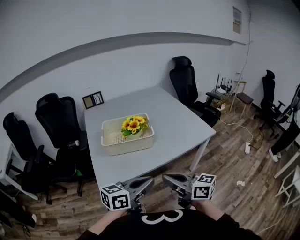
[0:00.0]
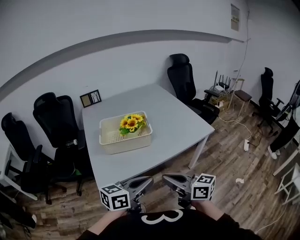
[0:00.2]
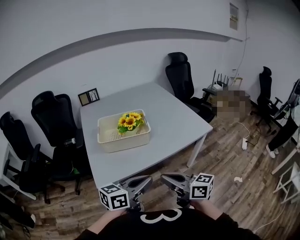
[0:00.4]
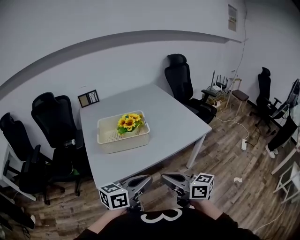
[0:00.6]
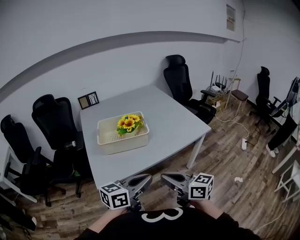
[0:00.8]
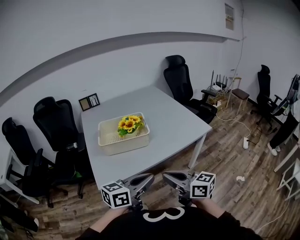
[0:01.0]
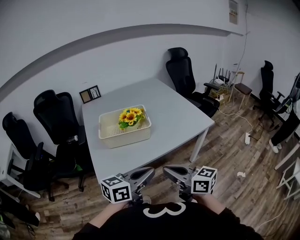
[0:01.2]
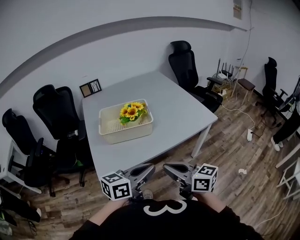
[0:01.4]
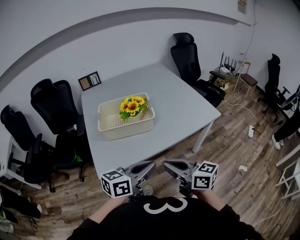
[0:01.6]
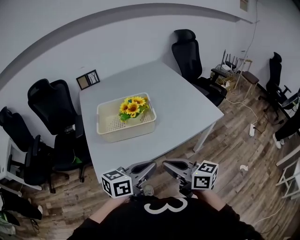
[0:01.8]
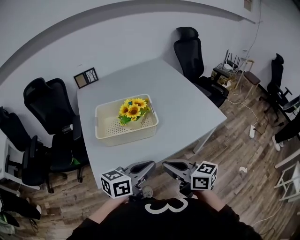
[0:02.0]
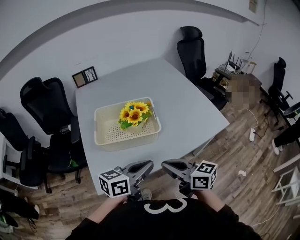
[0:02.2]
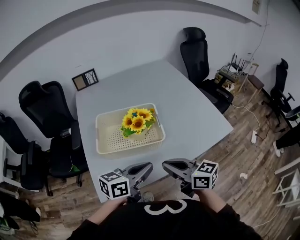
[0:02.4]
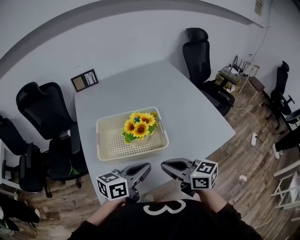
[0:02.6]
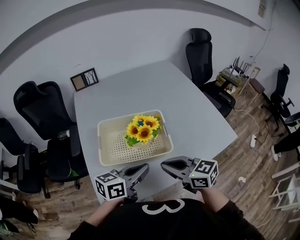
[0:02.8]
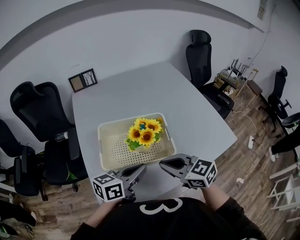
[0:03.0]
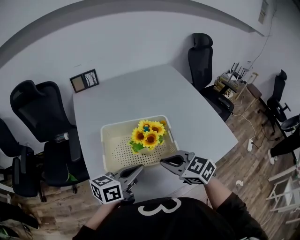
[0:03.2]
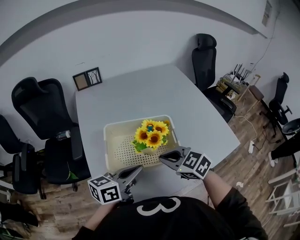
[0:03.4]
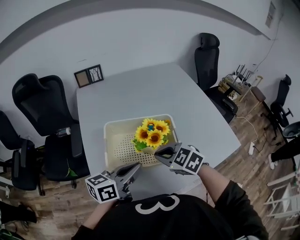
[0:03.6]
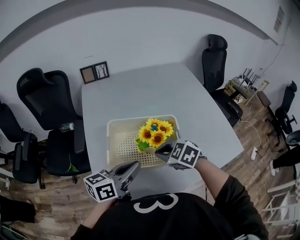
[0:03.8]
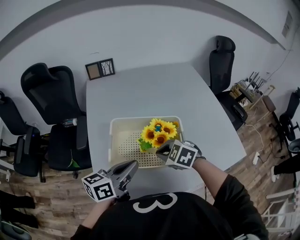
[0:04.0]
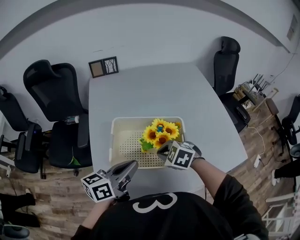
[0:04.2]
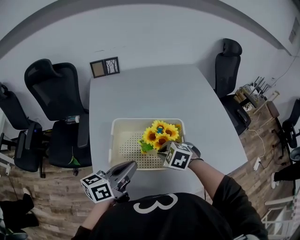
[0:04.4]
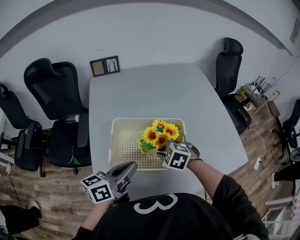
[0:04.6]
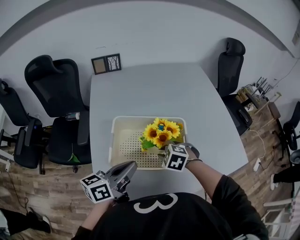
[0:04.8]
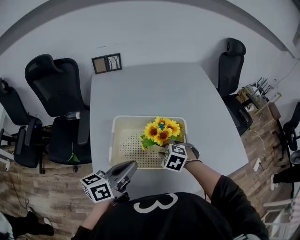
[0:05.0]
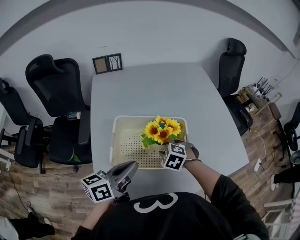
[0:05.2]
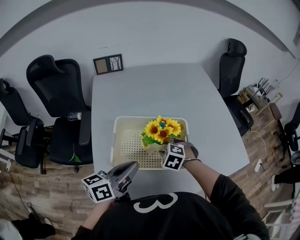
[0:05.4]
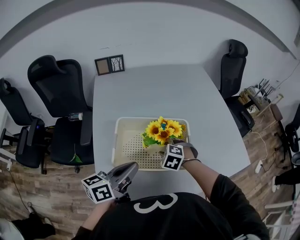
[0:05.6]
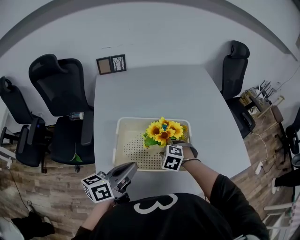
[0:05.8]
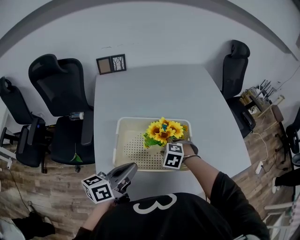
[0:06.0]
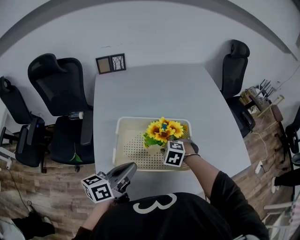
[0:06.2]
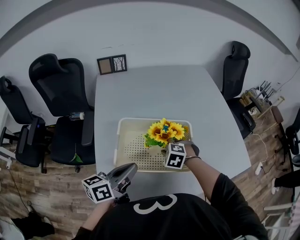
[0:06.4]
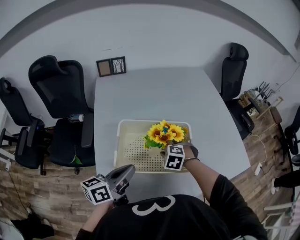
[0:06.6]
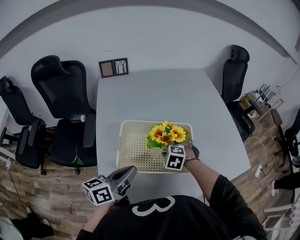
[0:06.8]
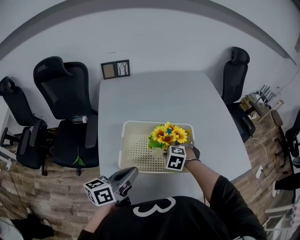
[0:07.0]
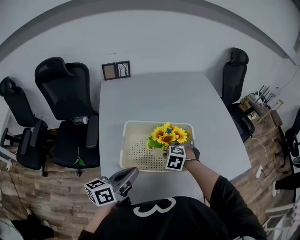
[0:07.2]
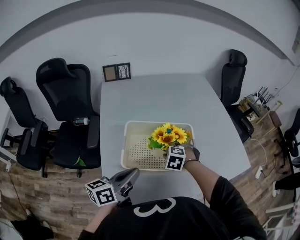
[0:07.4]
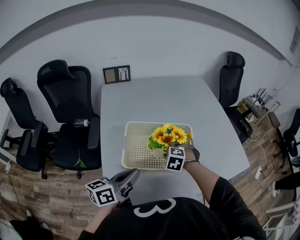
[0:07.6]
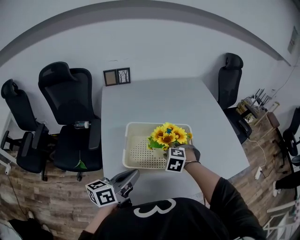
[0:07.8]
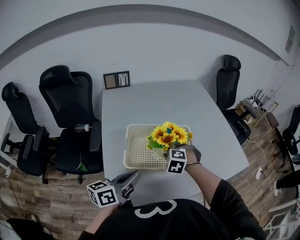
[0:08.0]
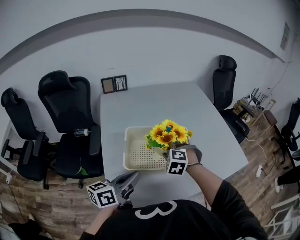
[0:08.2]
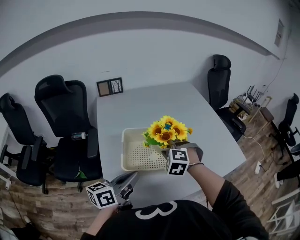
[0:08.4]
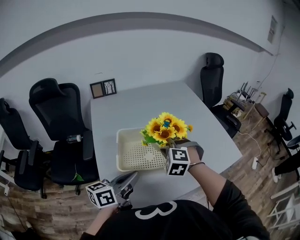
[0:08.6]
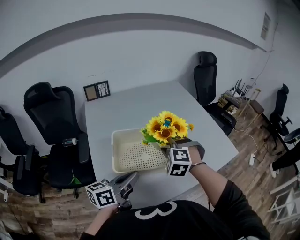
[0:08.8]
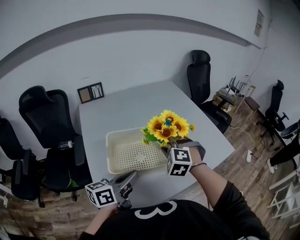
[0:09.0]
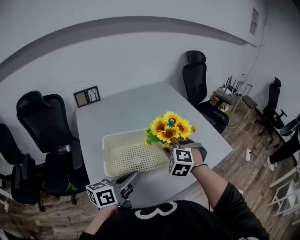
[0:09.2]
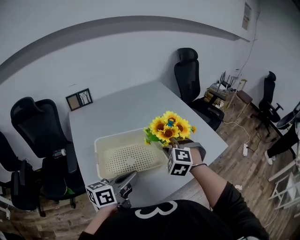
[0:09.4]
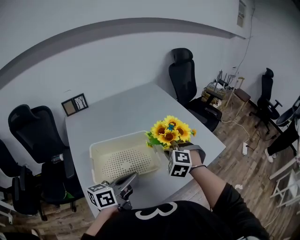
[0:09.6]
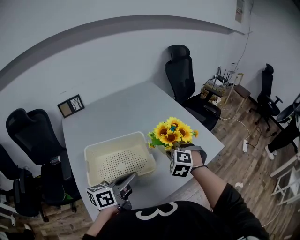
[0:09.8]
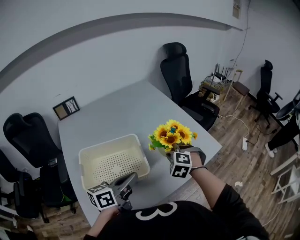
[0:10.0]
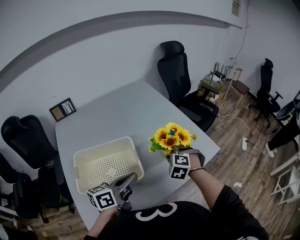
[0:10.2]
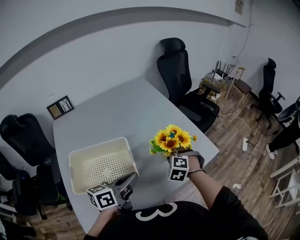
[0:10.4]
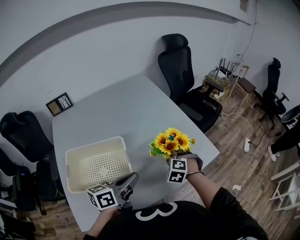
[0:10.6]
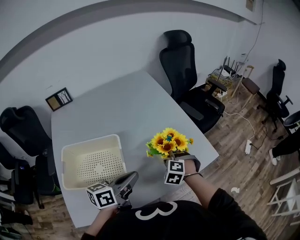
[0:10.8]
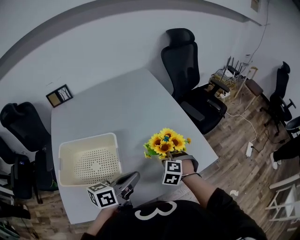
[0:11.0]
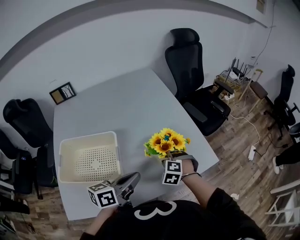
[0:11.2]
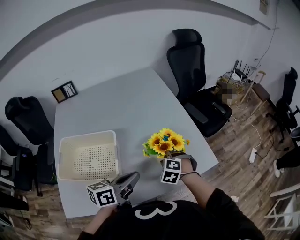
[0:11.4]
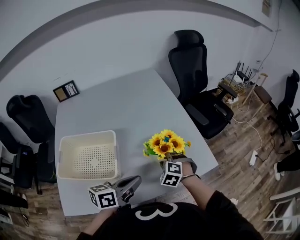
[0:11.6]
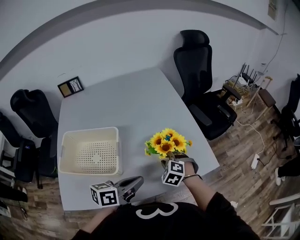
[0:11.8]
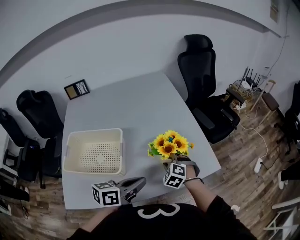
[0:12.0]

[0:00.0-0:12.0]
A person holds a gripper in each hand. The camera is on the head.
0:00.0 to 0:01.6: The grippers make only small movements.
0:01.6 to 0:03.0: The left gripper moves forward and to the left, roughly 25 cm. Meanwhile the right gripper shifts some 25 cm forward, and changes its angle by about 30 degrees.
0:03.0 to 0:04.4: The right gripper heads downward and forward, covering some 15 cm, and angles its fingers downward, by about 40 degrees. Meanwhile the left gripper moves to the left, roughly 5 cm.
0:04.4 to 0:06.0: The right gripper goes some 5 cm downward, and opens.
0:06.0 to 0:07.6: The grippers make only small movements.
0:07.6 to 0:09.0: The left gripper goes some 5 cm to the right. Meanwhile the right gripper goes some 15 cm upward and to the right, and changes its angle by roughly 20 degrees.
0:09.0 to 0:10.4: The left gripper goes about 20 cm to the right and forward, while the right gripper moves to the right, forward and downward, about 25 cm.
0:10.4 to 0:12.0: The right gripper shifts some 5 cm downward, while the left gripper is displaced to the right by approximately 10 cm.

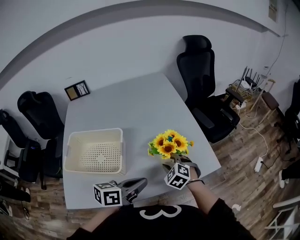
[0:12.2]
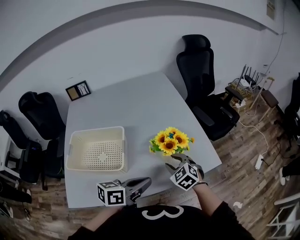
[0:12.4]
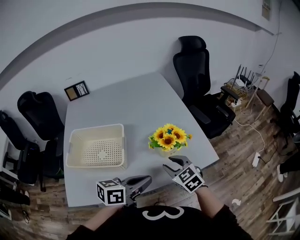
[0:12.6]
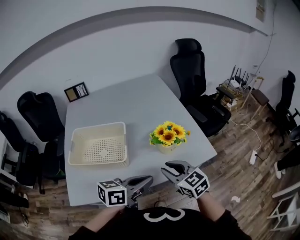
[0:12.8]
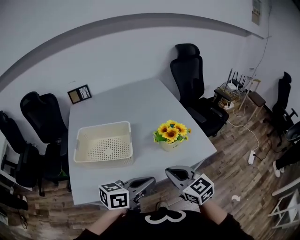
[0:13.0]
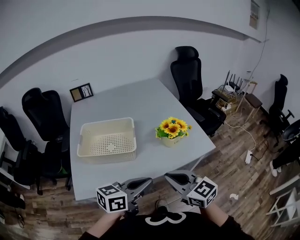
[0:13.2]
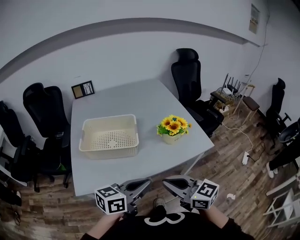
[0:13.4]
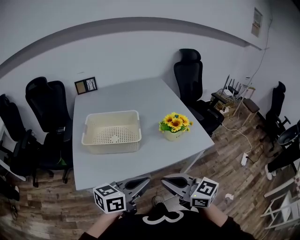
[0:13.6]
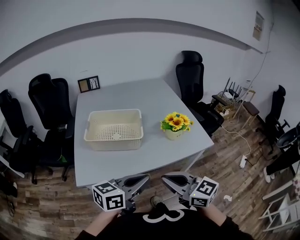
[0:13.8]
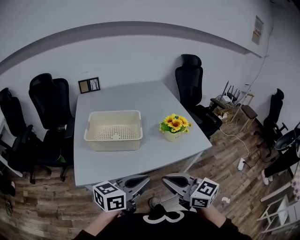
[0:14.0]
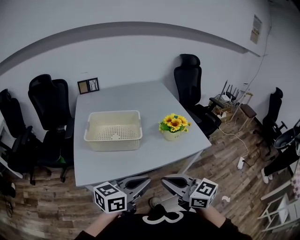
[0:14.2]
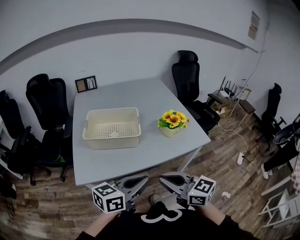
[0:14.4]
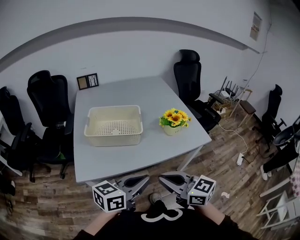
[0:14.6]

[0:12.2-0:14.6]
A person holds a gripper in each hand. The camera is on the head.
0:12.2 to 0:13.4: The left gripper shifts roughly 20 cm backward, while the right gripper heads backward and upward, covering roughly 35 cm, angles its fingers upward, by some 40 degrees, and closes.
0:13.4 to 0:14.6: The grippers both shift backward by about 5 cm.

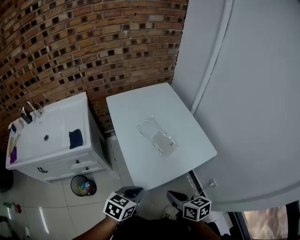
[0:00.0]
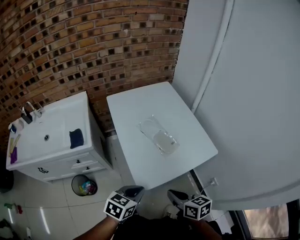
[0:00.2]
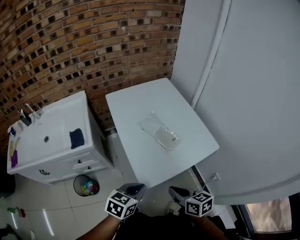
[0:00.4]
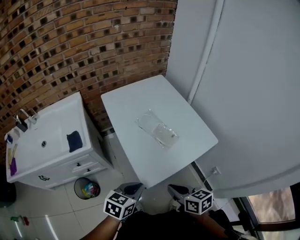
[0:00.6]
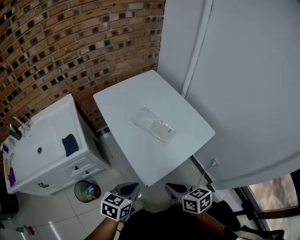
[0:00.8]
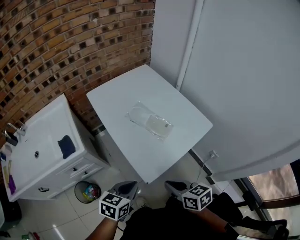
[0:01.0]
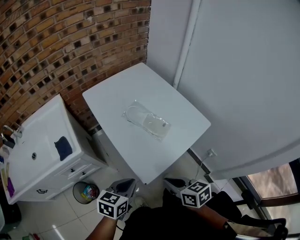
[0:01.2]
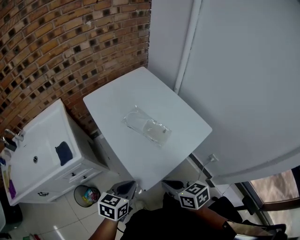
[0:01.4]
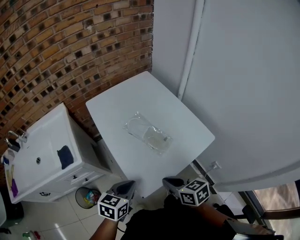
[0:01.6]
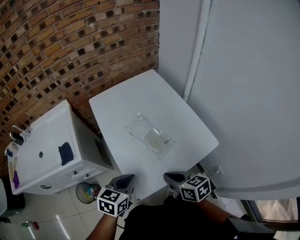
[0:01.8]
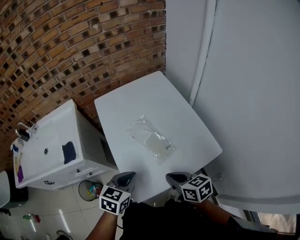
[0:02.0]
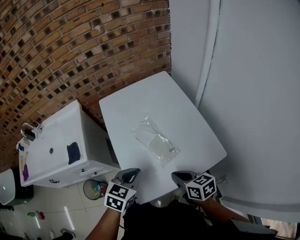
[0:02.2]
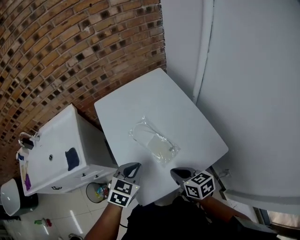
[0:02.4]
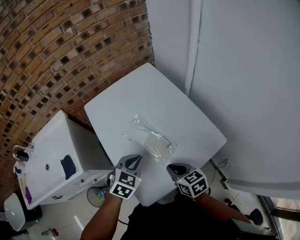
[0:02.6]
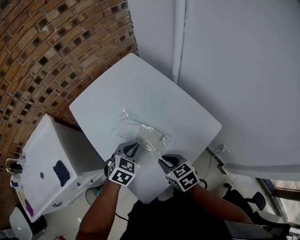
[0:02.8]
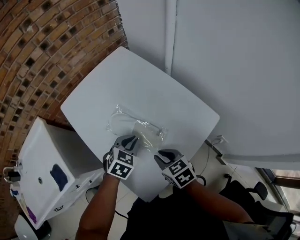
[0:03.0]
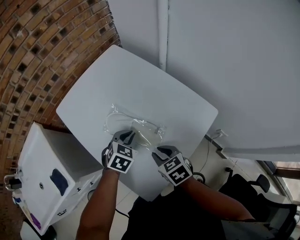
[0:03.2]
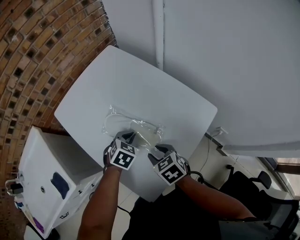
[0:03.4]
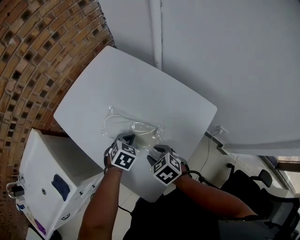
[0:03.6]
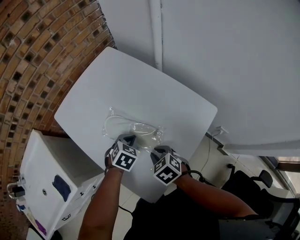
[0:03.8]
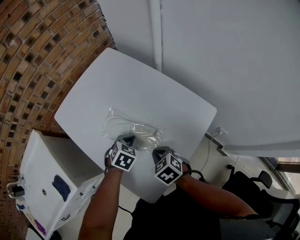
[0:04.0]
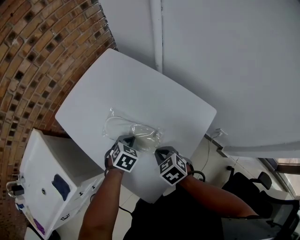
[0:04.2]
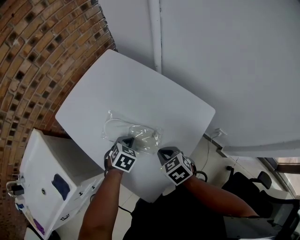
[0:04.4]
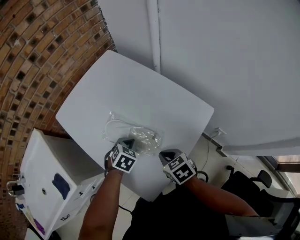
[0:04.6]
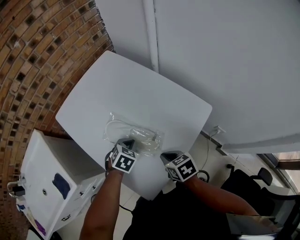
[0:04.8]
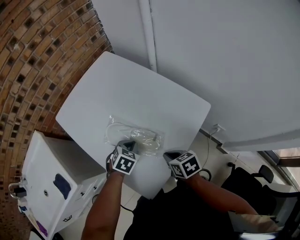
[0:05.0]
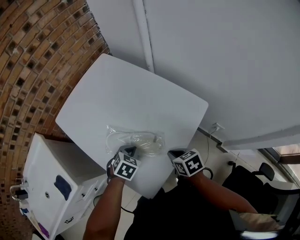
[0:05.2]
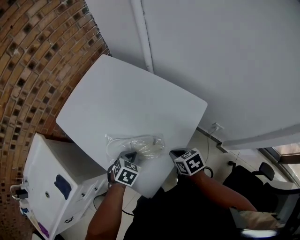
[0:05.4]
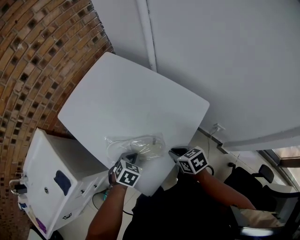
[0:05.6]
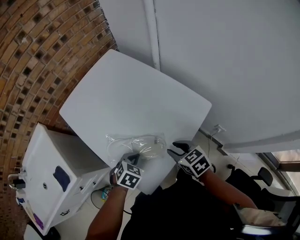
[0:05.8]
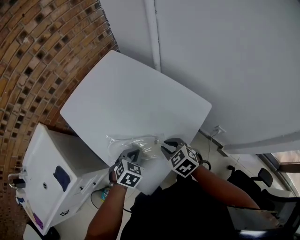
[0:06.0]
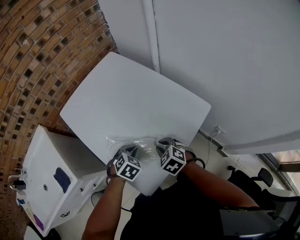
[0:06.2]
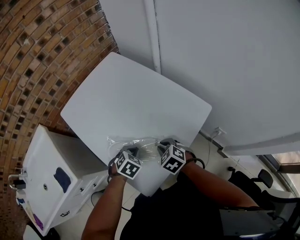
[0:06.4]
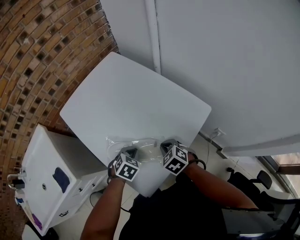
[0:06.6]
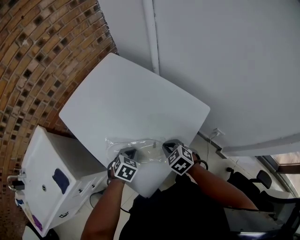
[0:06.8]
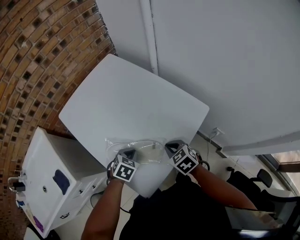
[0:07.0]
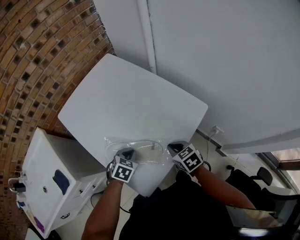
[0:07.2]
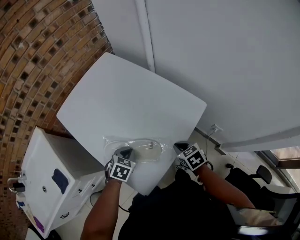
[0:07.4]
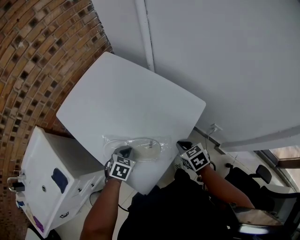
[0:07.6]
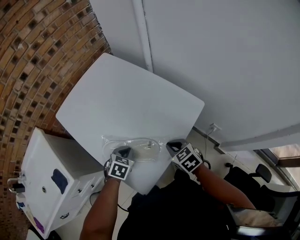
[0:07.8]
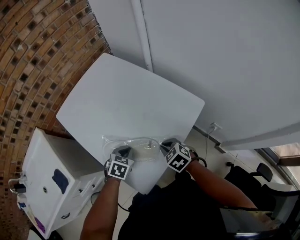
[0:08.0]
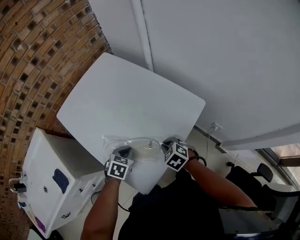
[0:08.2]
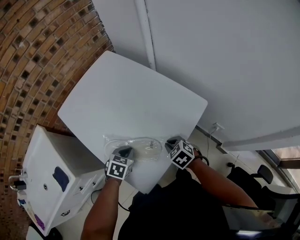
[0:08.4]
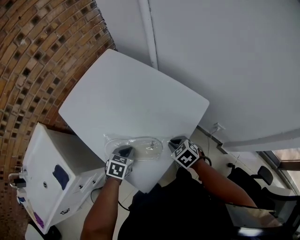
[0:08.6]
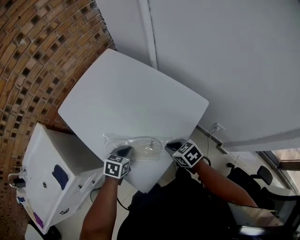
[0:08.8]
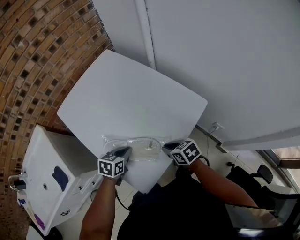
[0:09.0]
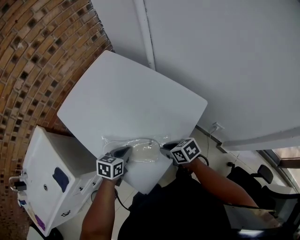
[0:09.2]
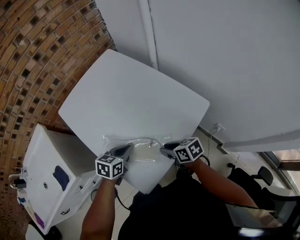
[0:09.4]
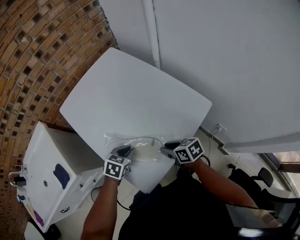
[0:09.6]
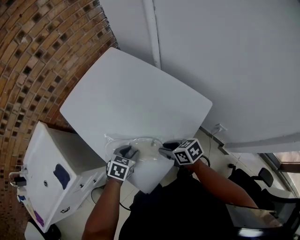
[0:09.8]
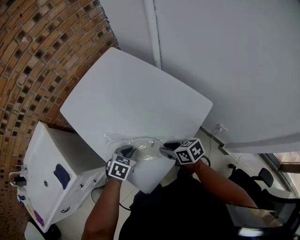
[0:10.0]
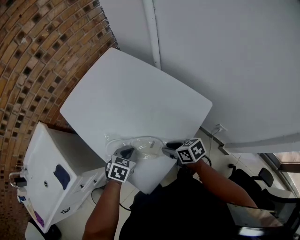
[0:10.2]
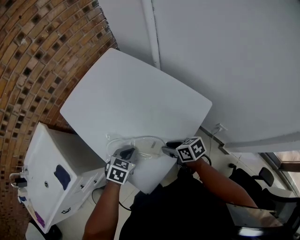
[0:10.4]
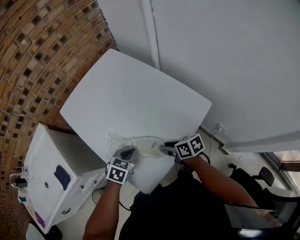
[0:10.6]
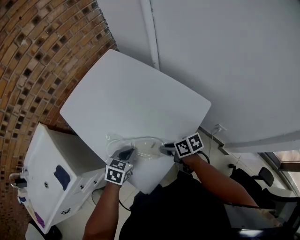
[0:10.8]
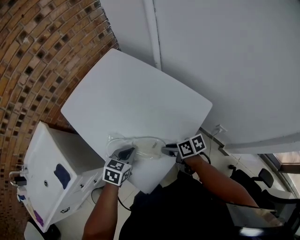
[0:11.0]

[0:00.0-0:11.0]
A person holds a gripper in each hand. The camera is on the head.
0:00.0 to 0:01.6: The two grippers go approximately 10 cm forward.
0:01.6 to 0:03.2: The left gripper goes some 30 cm forward, downward and to the right, and changes its angle by roughly 40 degrees; the right gripper travels forward and downward by some 20 cm, swivels roughly 20 degrees, and opens its fingers.
0:03.2 to 0:04.8: The left gripper moves some 5 cm. The right gripper moves approximately 5 cm, and closes up.
0:04.8 to 0:06.2: The left gripper travels backward by about 5 cm. The right gripper changes its angle by approximately 40 degrees.
0:06.2 to 0:07.8: The right gripper travels to the right by approximately 5 cm.
0:07.8 to 0:09.4: The left gripper rotates some 30 degrees. Meanwhile the right gripper swivels roughly 30 degrees, and opens up.
0:09.4 to 0:11.0: The left gripper opens, then closes again.
